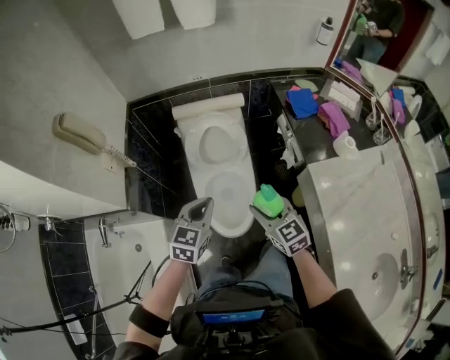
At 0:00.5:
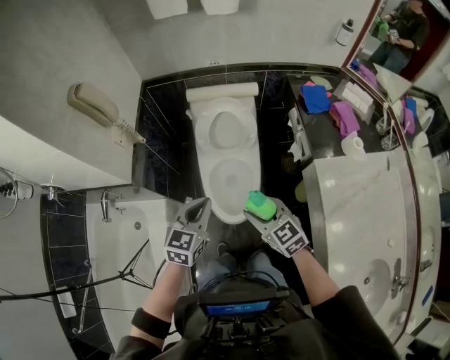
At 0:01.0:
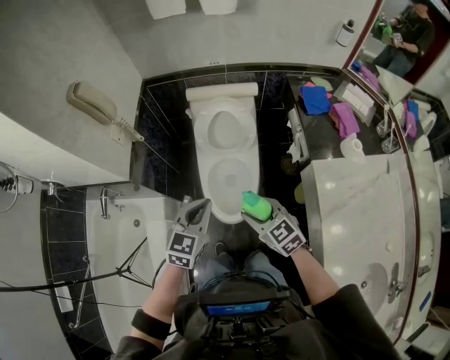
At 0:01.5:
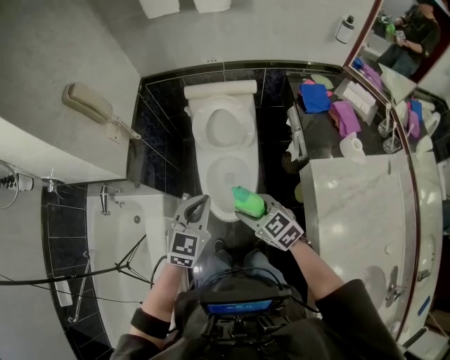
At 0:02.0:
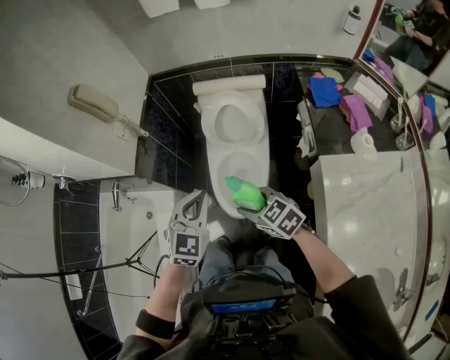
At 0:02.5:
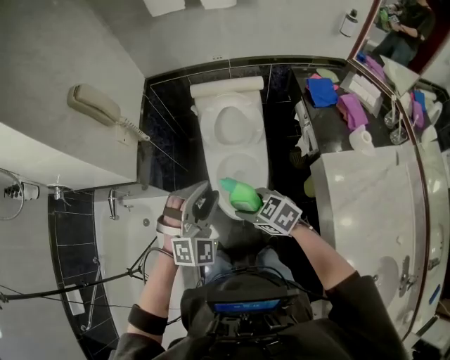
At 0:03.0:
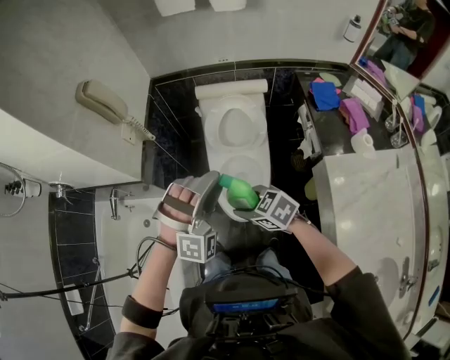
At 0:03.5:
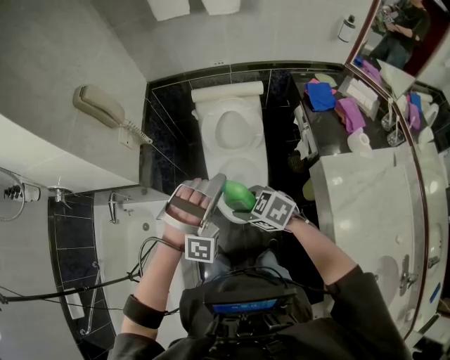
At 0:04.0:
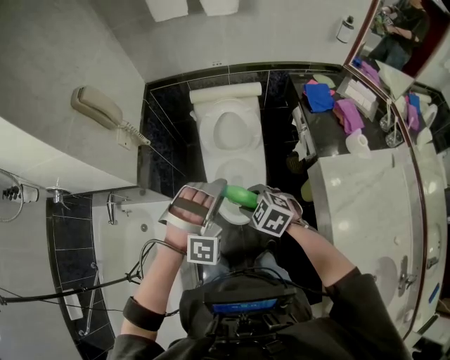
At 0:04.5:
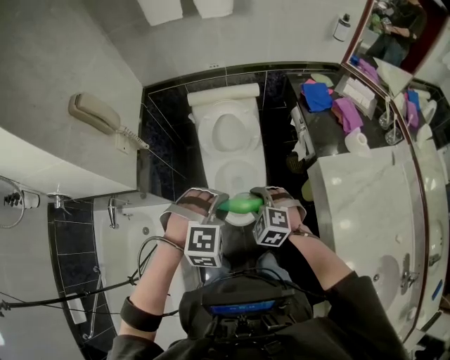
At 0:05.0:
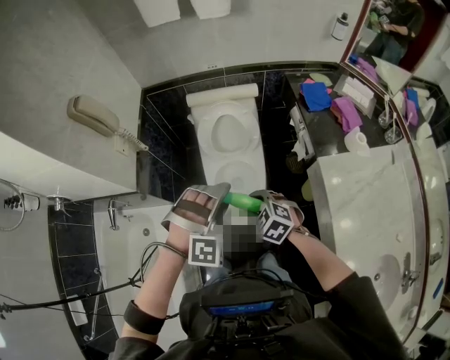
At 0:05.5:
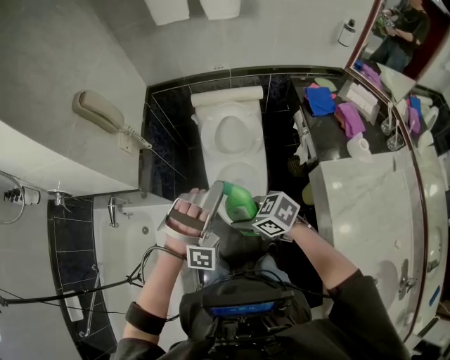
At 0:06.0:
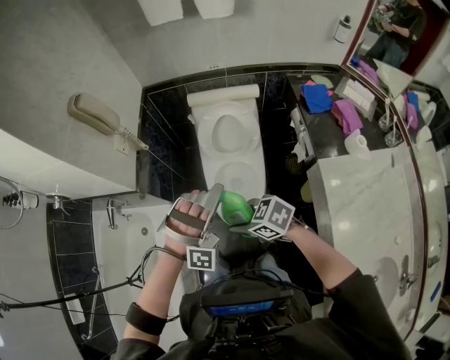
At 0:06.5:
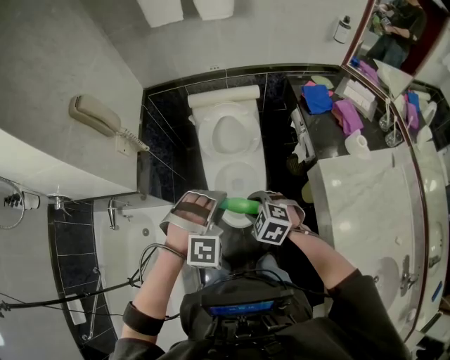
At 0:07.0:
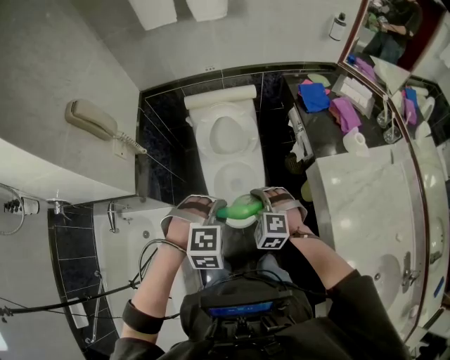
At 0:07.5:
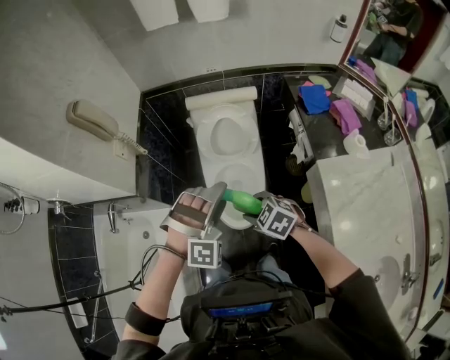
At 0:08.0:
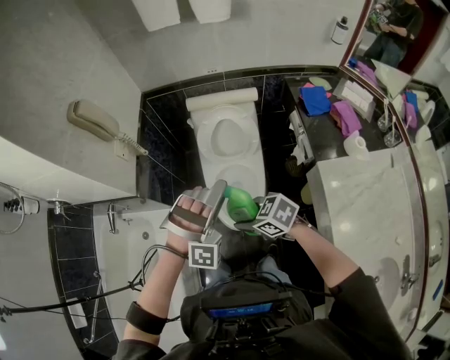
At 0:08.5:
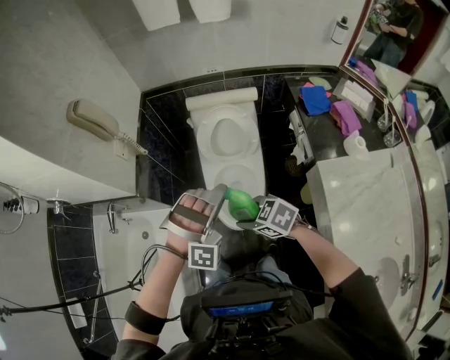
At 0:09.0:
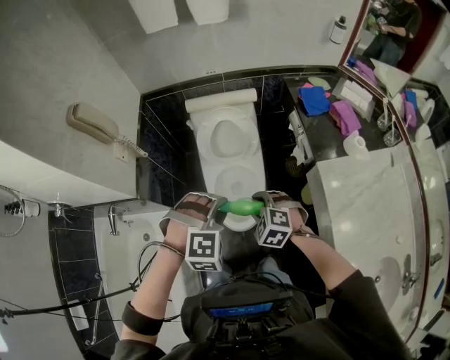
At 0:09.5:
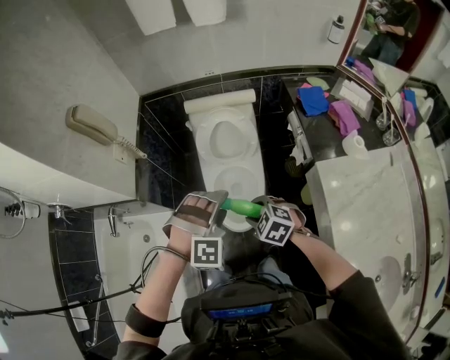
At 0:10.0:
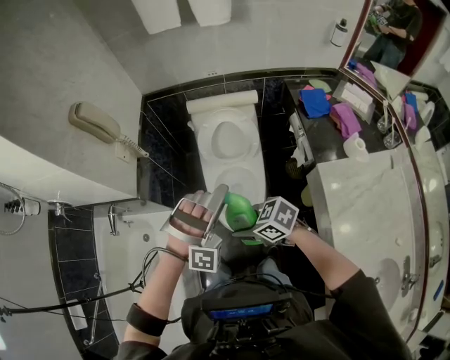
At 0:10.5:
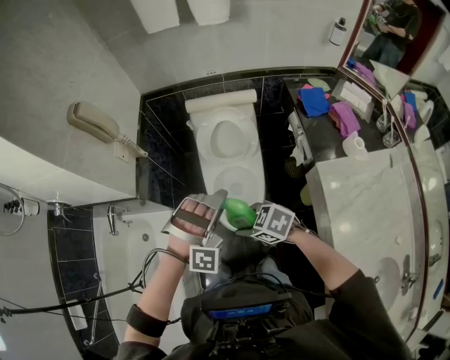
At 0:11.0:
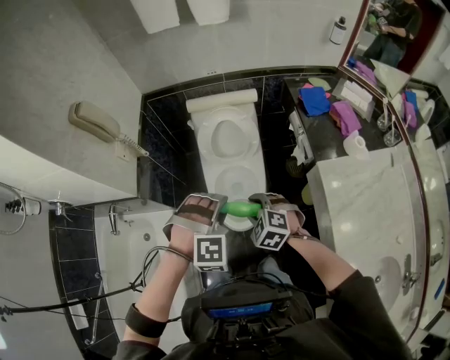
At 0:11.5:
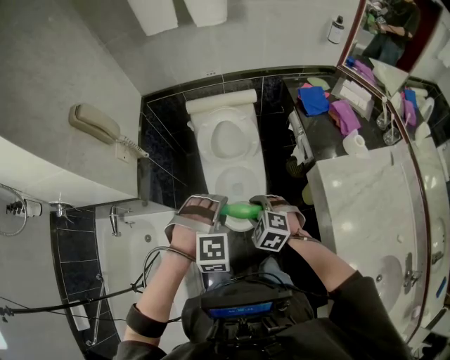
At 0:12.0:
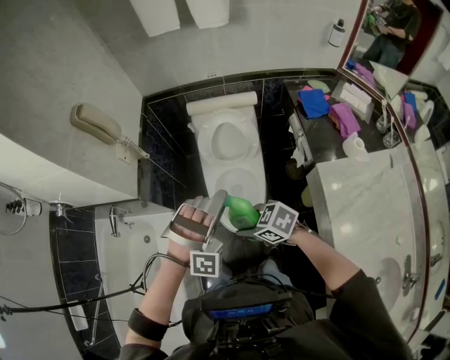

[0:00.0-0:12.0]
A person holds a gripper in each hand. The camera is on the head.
0:00.0 to 0:02.0: The right gripper ends up about 5 cm from where it was, and swivels roughly 40 degrees, while the left gripper shifts by roughly 10 cm, and rotates some 20 degrees.
0:02.0 to 0:04.0: The right gripper changes its angle by roughly 20 degrees, while the left gripper twists approximately 70 degrees clockwise, seen from behind, and opens its fingers.
0:04.0 to 0:06.0: The right gripper shifts by about 5 cm, and turns by roughly 30 degrees; the left gripper opens, then closes again.
0:06.0 to 0:08.0: The left gripper moves about 10 cm downward and comes back, and opens.
0:08.0 to 0:10.0: The left gripper closes, then opens again.

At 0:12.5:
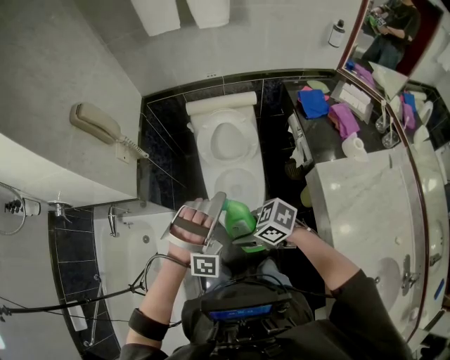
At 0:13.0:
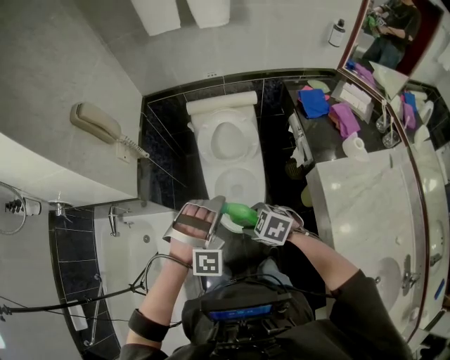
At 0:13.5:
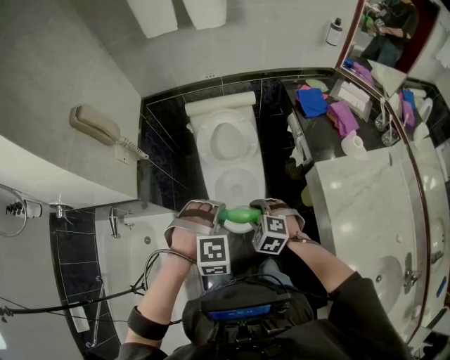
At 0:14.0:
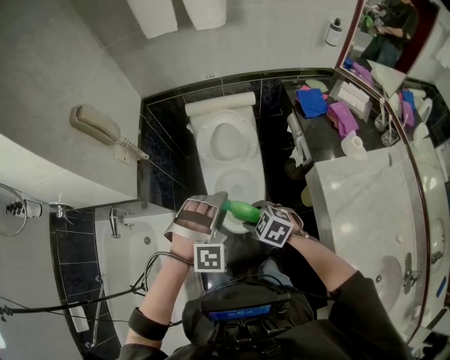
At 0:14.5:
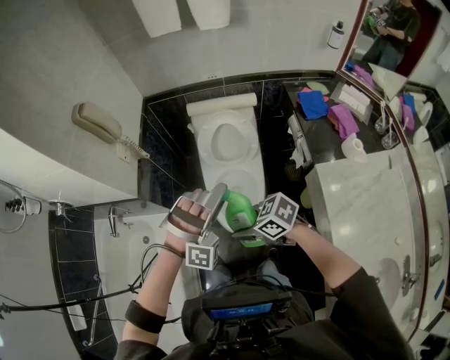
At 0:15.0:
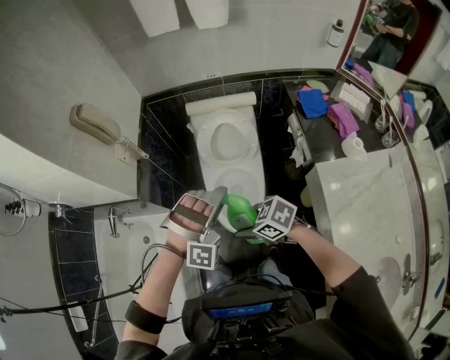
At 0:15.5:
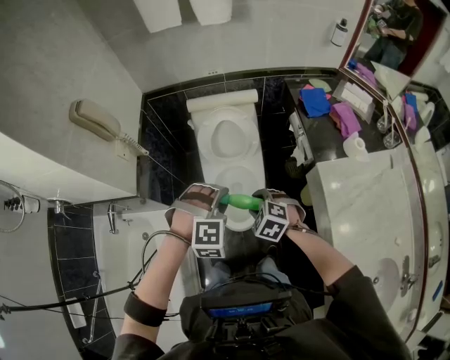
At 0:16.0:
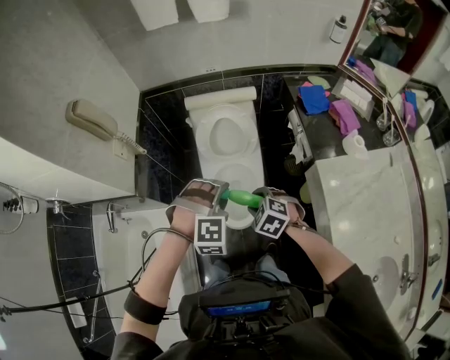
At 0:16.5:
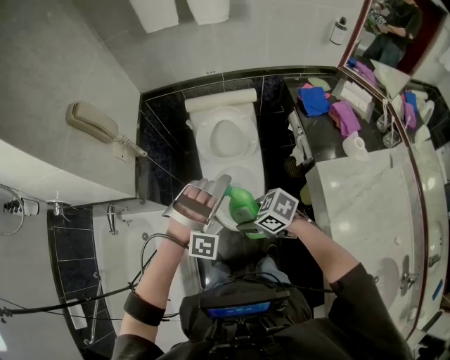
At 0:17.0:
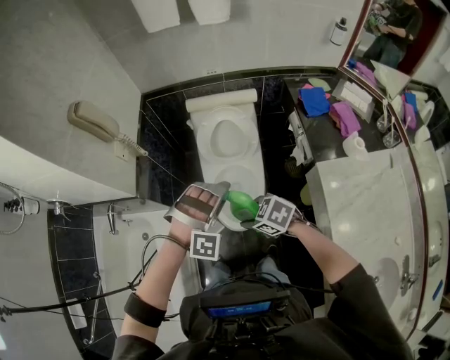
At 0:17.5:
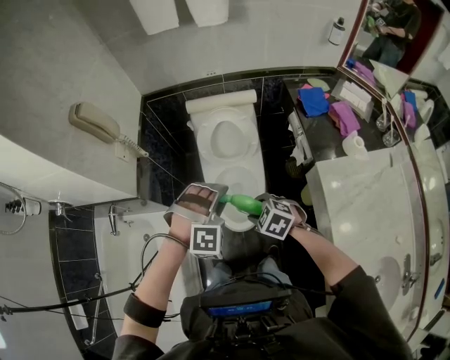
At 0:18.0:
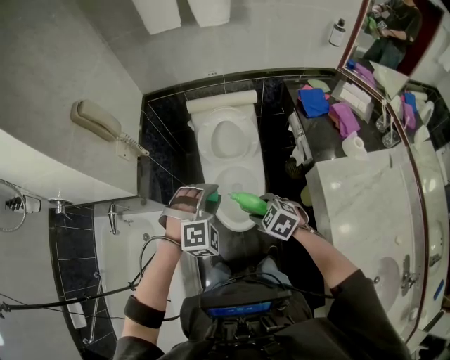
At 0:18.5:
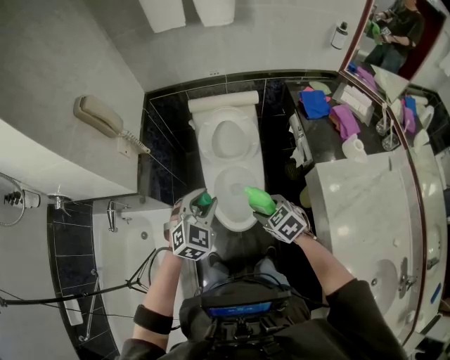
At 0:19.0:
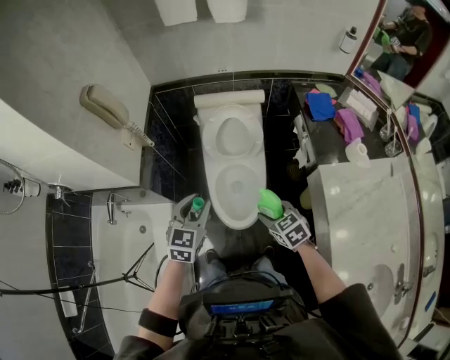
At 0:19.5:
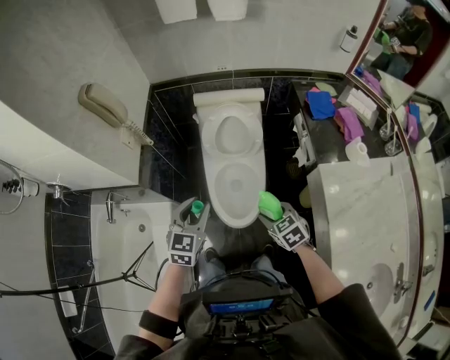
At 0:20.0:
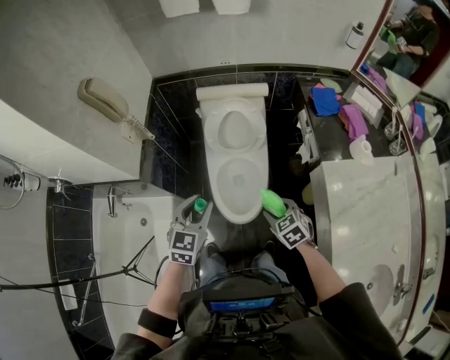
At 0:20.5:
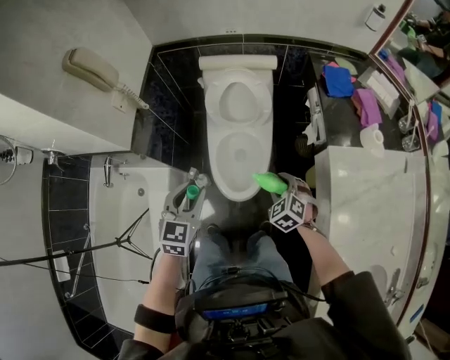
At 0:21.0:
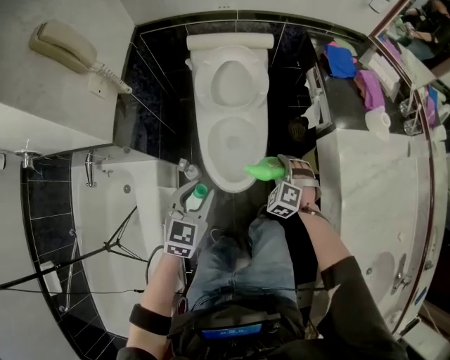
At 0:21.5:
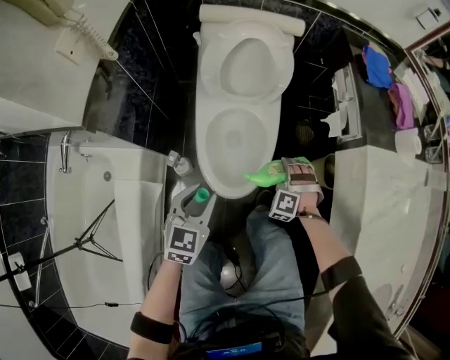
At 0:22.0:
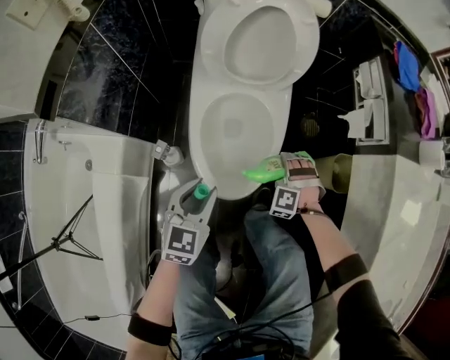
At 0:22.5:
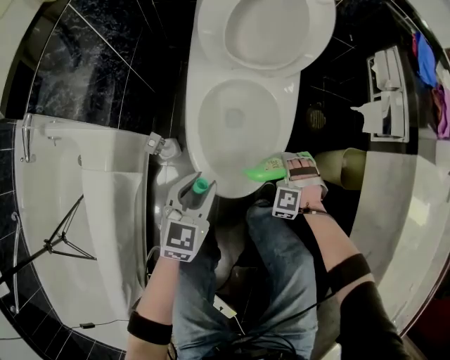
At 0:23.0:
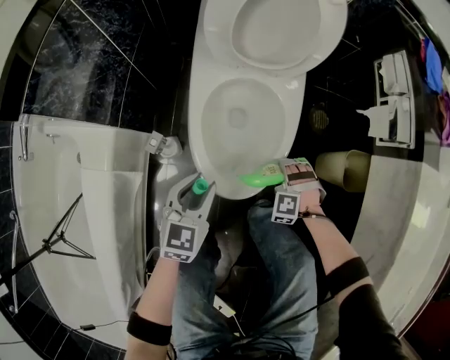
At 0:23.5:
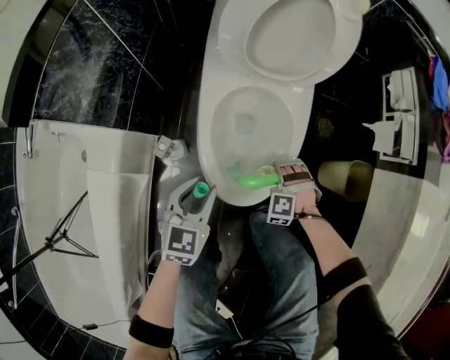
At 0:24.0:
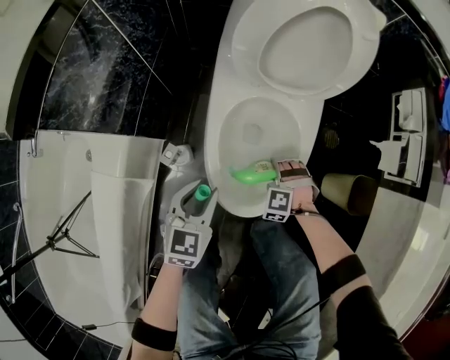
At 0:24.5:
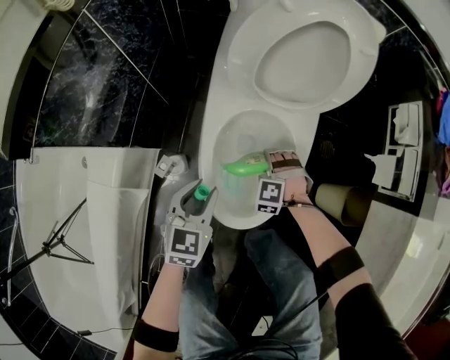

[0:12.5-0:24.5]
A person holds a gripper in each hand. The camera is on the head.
0:14.5 to 0:16.5: The left gripper closes, then opens again; the right gripper reaches approximately 10 cm to the right, then returns.
0:16.5 to 0:18.5: The right gripper travels to the right by some 5 cm, and turns by about 30 degrees. The left gripper is displaced to the left by about 5 cm, rolls counterclockwise, seen from behind, by approximately 70 degrees, and closes up.
0:18.5 to 0:20.5: The left gripper moves some 5 cm, and changes its angle by some 30 degrees. The right gripper heads downward and to the right, covering some 10 cm, and swivels approximately 20 degrees.
0:20.5 to 0:22.5: Both grippers travel together downward, about 40 cm. The right gripper twists roughly 50 degrees counterclockwise, seen from behind.
0:22.5 to 0:24.5: The left gripper heads to the left and forward, covering approximately 10 cm; the right gripper heads to the left and forward, covering approximately 15 cm.

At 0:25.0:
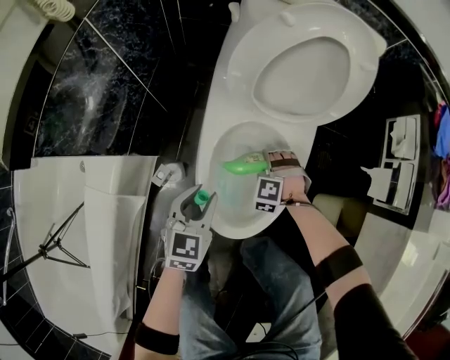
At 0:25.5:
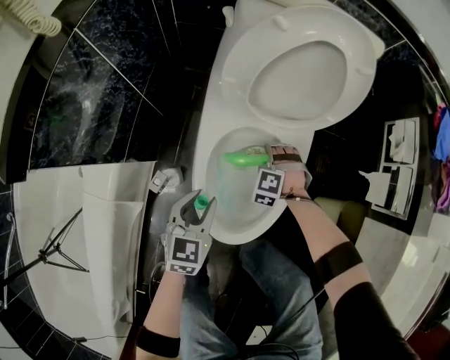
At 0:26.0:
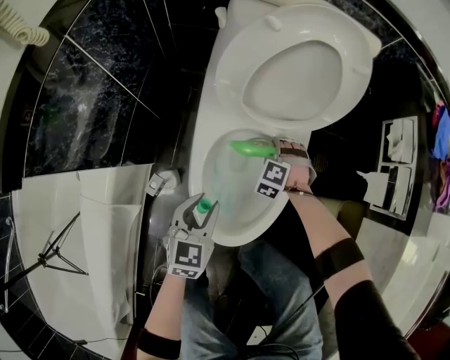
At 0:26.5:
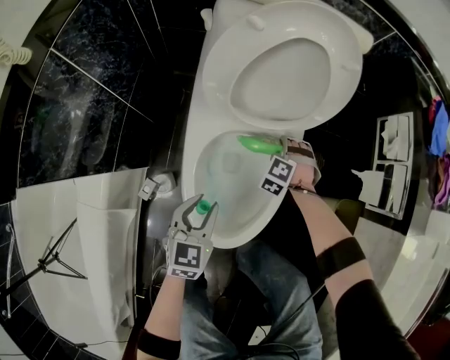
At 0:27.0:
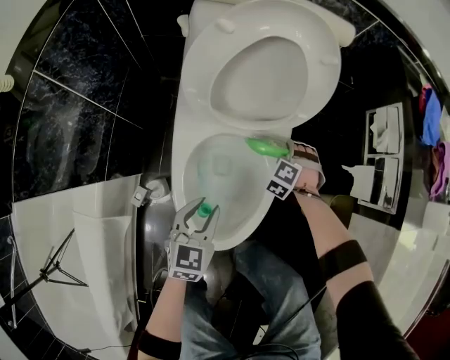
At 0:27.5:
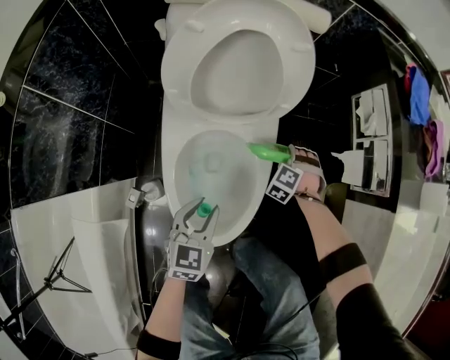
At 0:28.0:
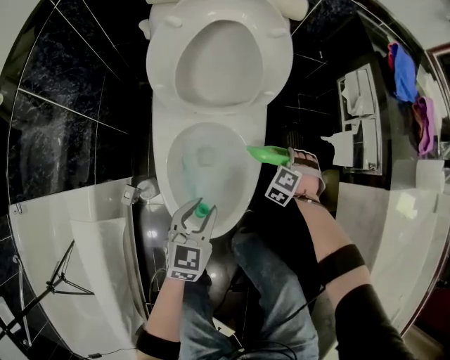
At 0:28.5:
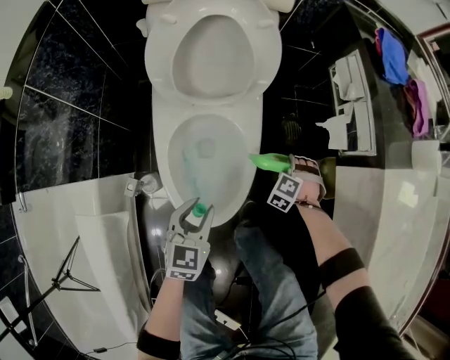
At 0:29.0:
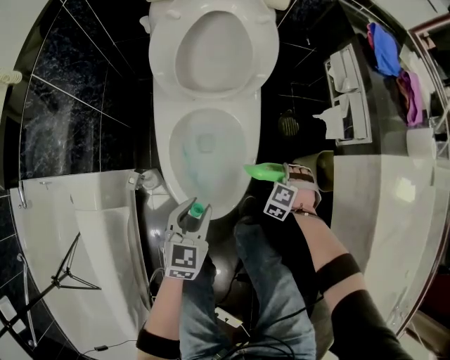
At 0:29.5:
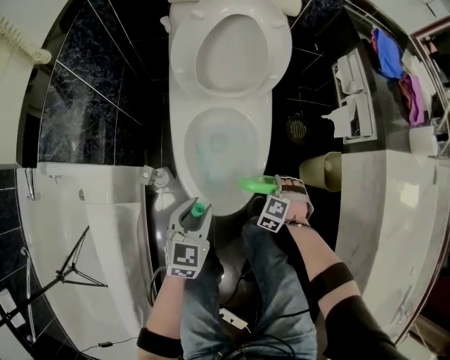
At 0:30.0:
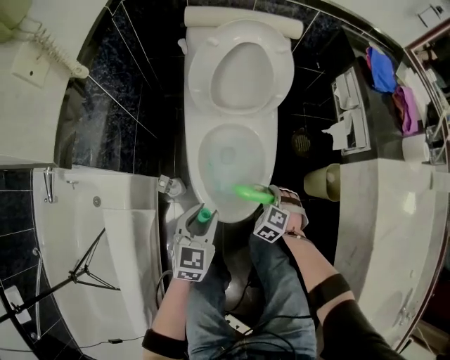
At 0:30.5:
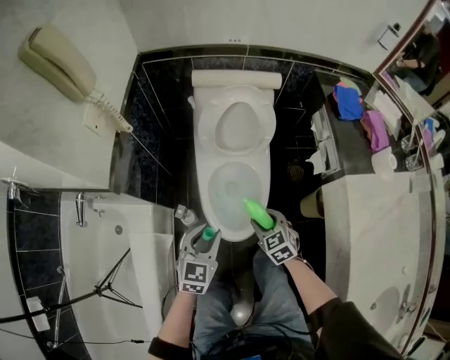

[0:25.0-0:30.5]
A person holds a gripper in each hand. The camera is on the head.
0:25.0 to 0:27.0: The left gripper moves to the right and forward, about 10 cm. The right gripper shifts roughly 20 cm forward and to the right, and turns by approximately 30 degrees.
0:27.0 to 0:28.5: The left gripper goes some 5 cm to the right, while the right gripper is displaced to the right and backward by roughly 20 cm.
0:28.5 to 0:30.5: The two grippers go some 25 cm upward. The right gripper turns by about 60 degrees.
